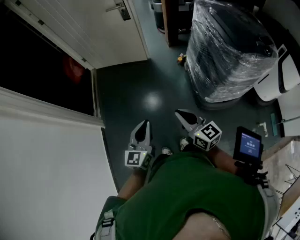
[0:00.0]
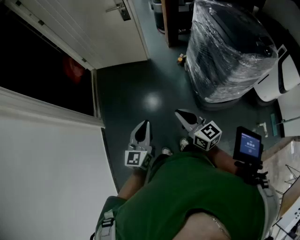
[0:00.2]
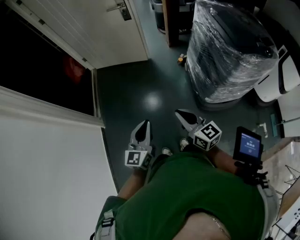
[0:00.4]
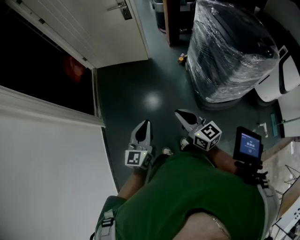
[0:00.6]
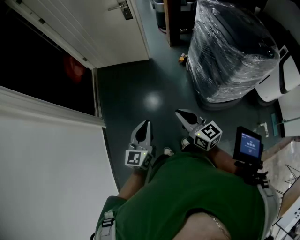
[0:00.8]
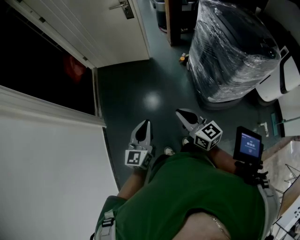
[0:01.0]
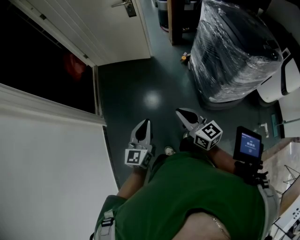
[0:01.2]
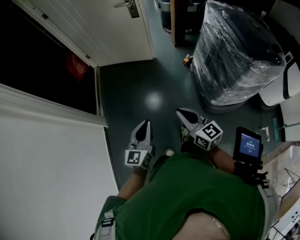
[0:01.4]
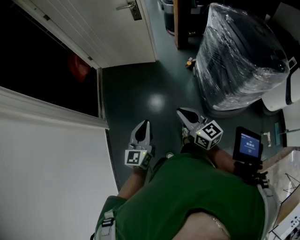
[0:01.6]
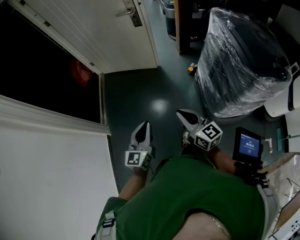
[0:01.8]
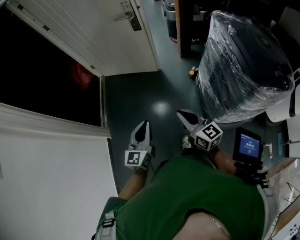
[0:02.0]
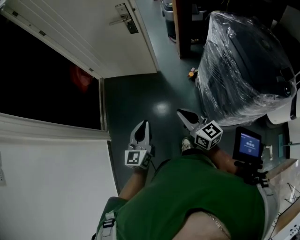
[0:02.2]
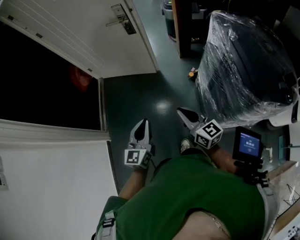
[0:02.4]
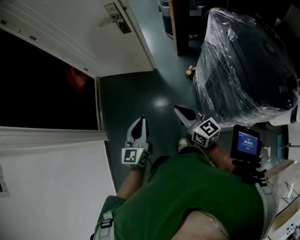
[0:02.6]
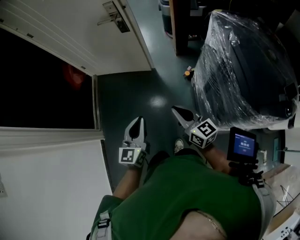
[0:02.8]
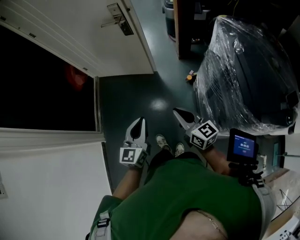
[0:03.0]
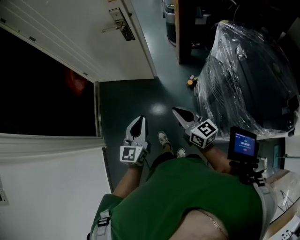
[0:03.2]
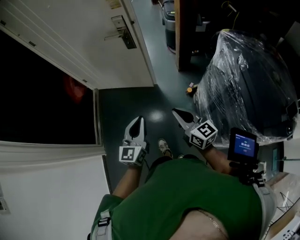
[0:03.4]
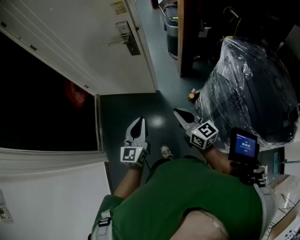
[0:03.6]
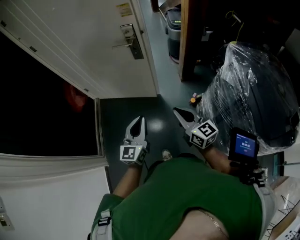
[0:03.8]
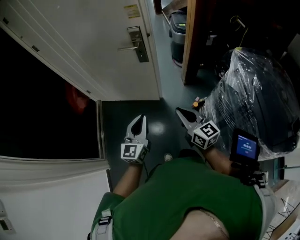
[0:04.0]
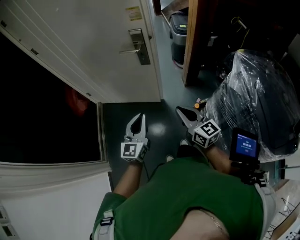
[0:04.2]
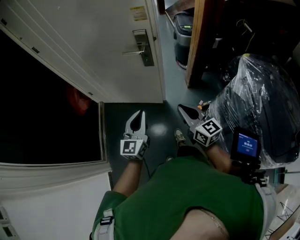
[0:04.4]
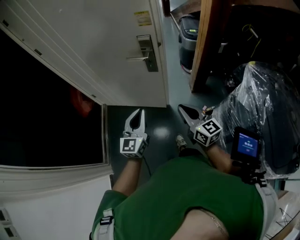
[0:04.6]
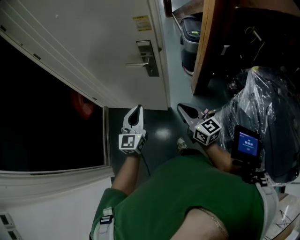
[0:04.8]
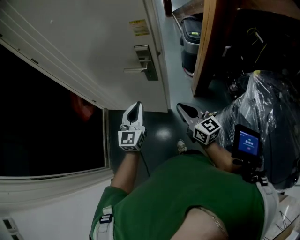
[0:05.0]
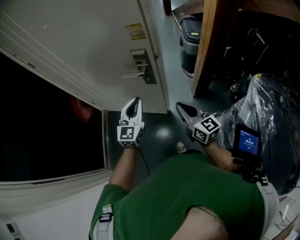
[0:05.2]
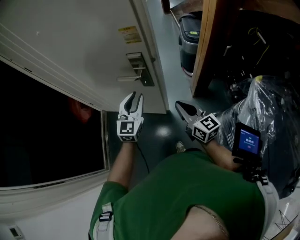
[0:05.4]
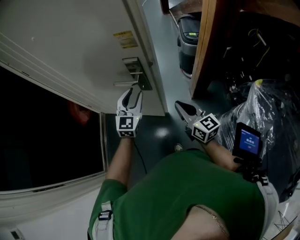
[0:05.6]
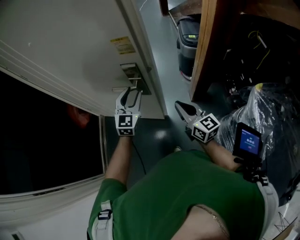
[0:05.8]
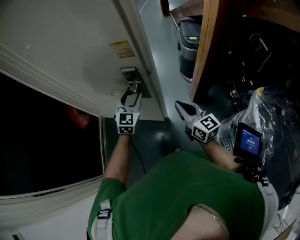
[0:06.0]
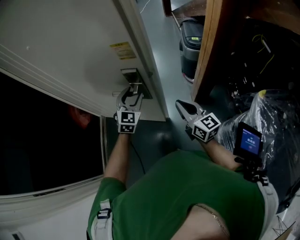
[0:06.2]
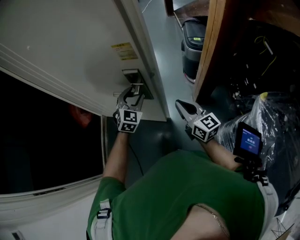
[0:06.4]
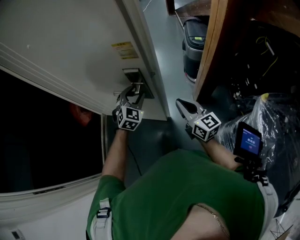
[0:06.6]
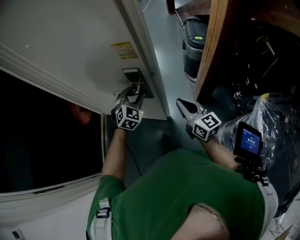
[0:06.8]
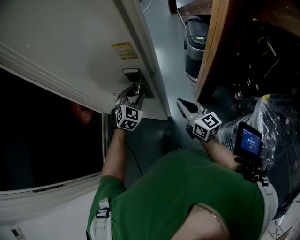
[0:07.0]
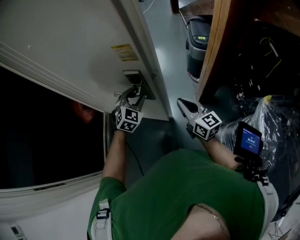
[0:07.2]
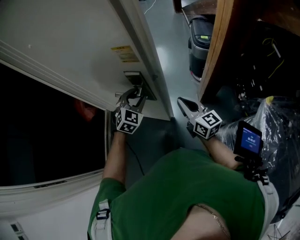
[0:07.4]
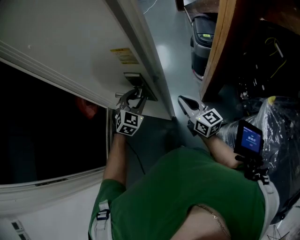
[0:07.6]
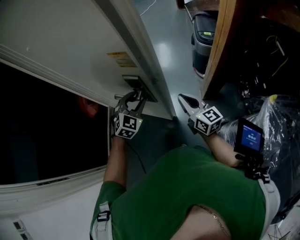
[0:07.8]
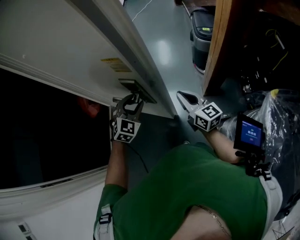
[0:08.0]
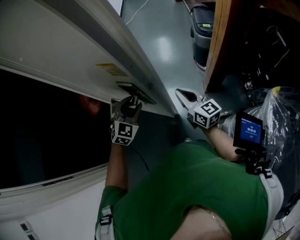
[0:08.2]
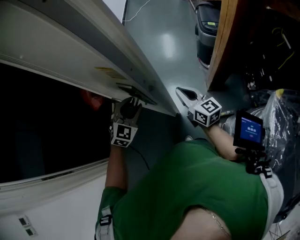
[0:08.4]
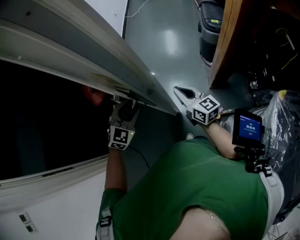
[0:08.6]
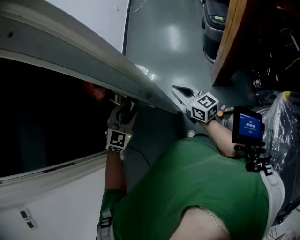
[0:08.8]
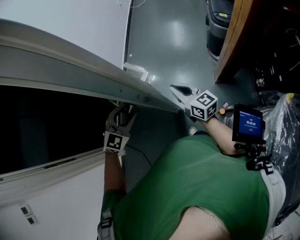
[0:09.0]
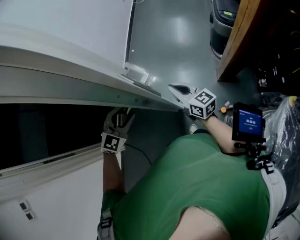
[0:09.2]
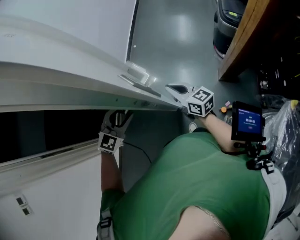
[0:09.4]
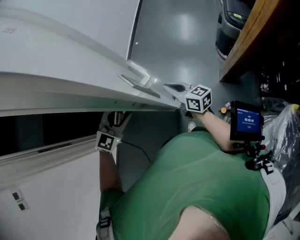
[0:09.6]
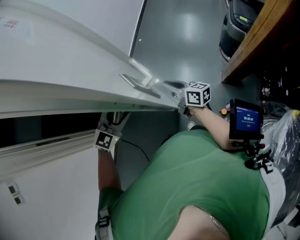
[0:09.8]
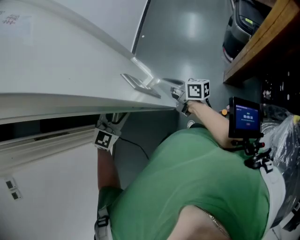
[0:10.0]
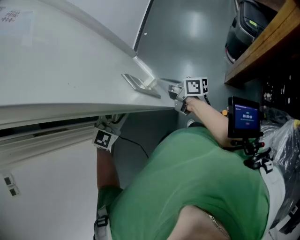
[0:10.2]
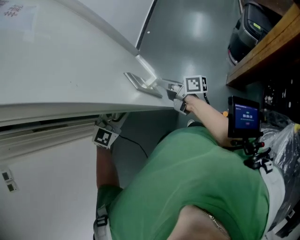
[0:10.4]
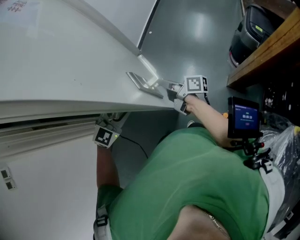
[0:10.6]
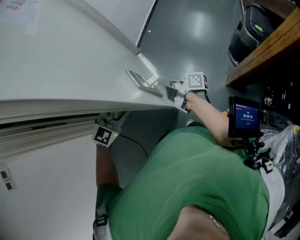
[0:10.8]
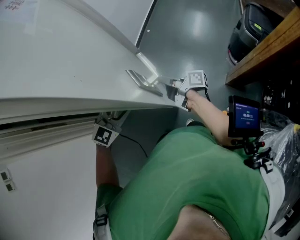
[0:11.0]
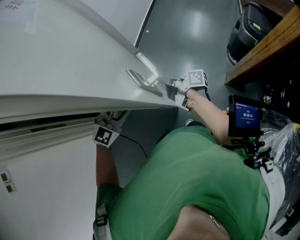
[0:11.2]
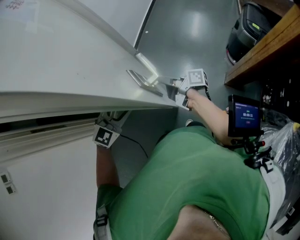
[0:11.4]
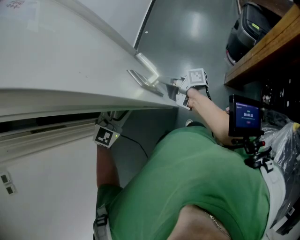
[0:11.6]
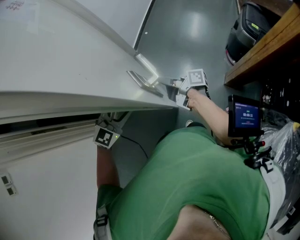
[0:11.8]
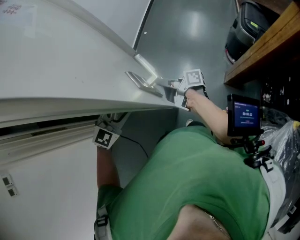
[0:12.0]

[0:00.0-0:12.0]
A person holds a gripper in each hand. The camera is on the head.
0:00.0 to 0:01.6: Both grippers travel together forward, roughly 5 cm.
0:01.6 to 0:03.0: The two grippers go about 30 cm forward and to the right.
0:03.0 to 0:04.4: The grippers both shift forward by some 25 cm.
0:04.4 to 0:06.0: Both grippers travel together forward, approximately 30 cm. The left gripper swivels approximately 30 degrees, and opens.
0:06.0 to 0:07.6: The left gripper swivels about 20 degrees.
0:07.6 to 0:09.0: The right gripper moves to the left, roughly 10 cm. Meanwhile the left gripper goes approximately 15 cm backward and to the left.
0:09.0 to 0:10.4: The left gripper moves to the left, roughly 10 cm. Meanwhile the right gripper is displaced to the left by some 15 cm, rolls clockwise, seen from behind, by some 50 degrees, and opens up.
0:10.4 to 0:12.0: The grippers stay close to where they were, moving slightly.

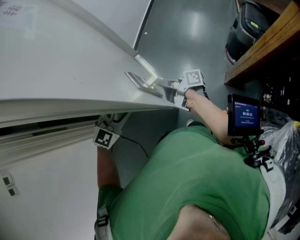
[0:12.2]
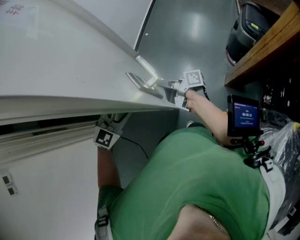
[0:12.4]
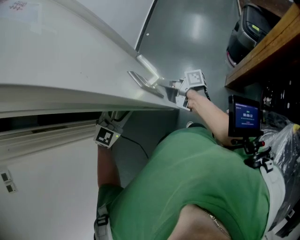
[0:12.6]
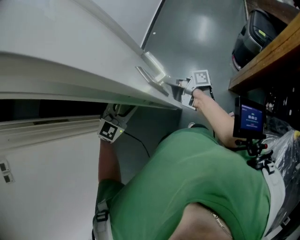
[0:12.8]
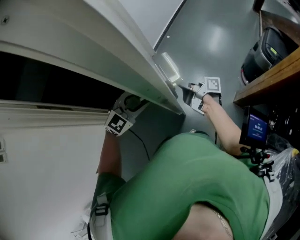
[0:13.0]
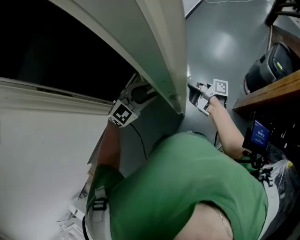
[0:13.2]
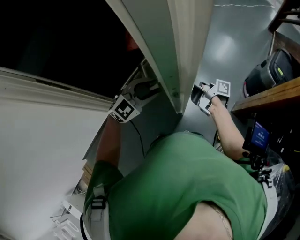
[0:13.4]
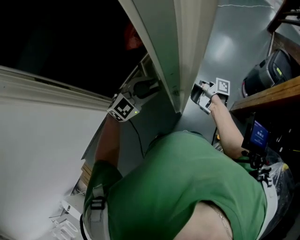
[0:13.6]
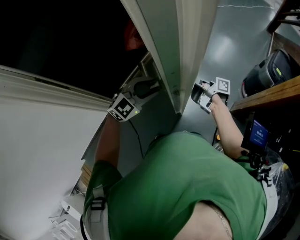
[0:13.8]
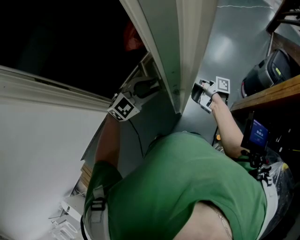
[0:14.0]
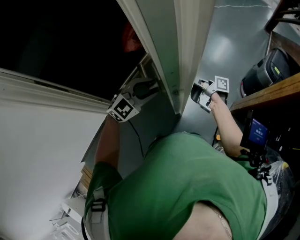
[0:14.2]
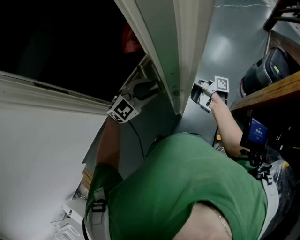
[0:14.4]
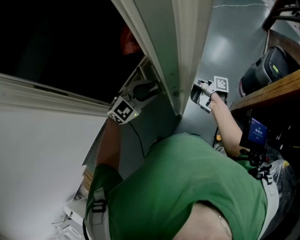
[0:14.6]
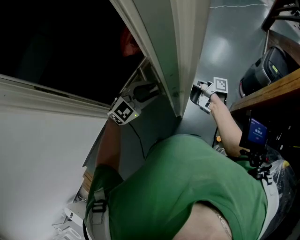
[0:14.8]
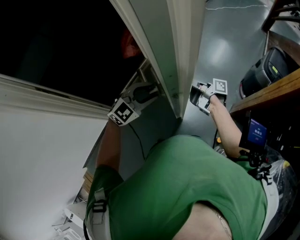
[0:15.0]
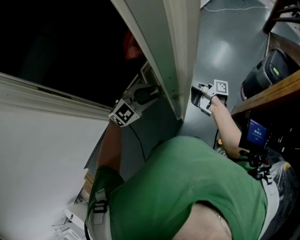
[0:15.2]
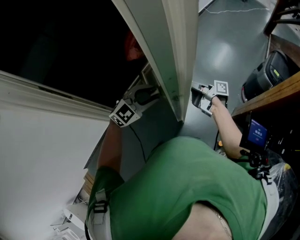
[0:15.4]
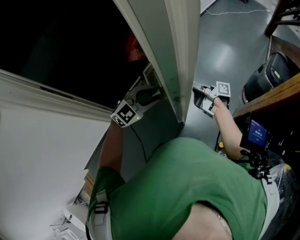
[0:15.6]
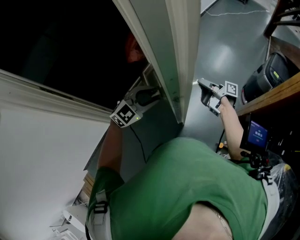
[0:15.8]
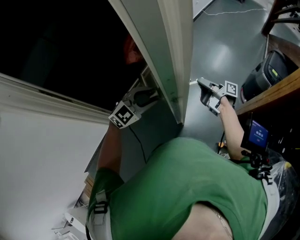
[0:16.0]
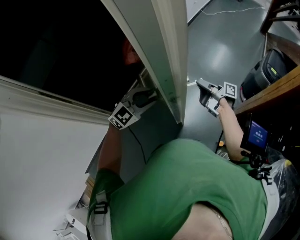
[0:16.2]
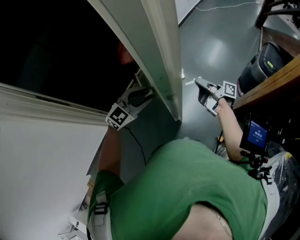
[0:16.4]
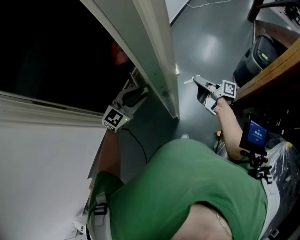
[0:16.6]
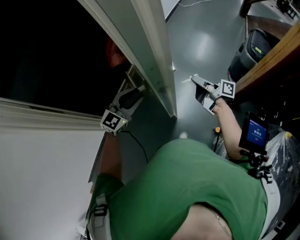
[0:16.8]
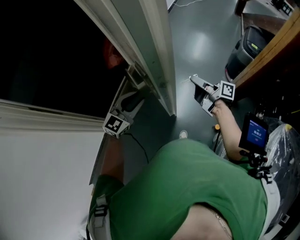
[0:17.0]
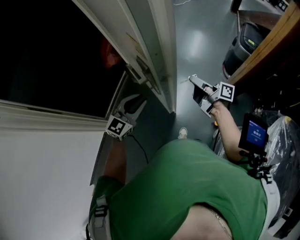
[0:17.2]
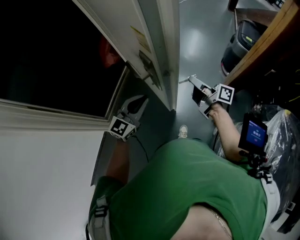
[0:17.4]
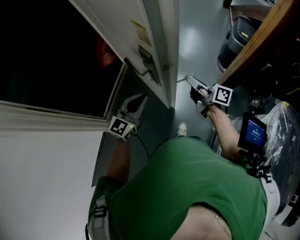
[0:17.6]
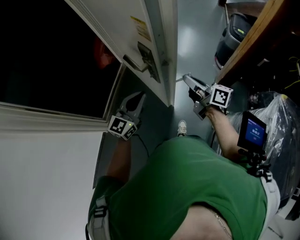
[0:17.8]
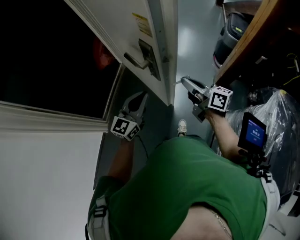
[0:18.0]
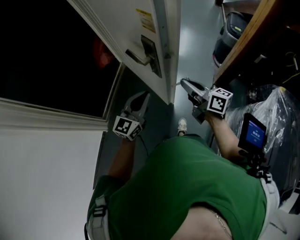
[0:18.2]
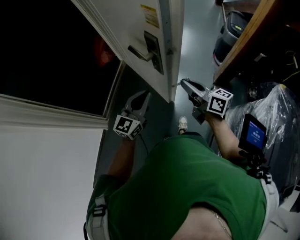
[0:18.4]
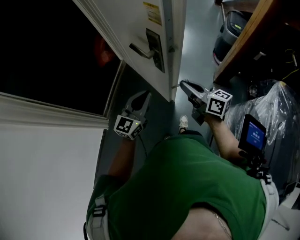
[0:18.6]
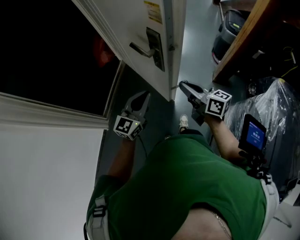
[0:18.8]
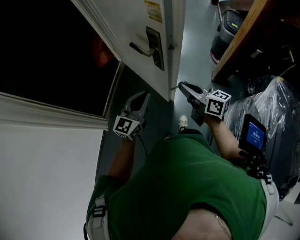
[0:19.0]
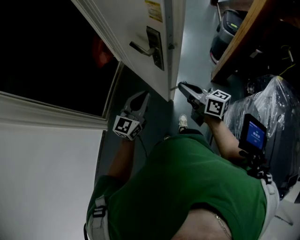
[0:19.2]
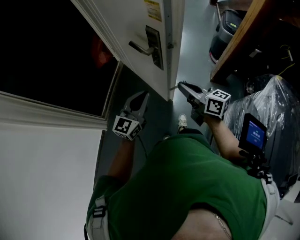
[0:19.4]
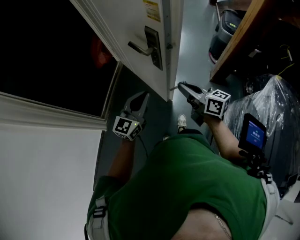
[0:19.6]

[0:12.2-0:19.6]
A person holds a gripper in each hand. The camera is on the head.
0:12.2 to 0:13.6: There are only small adjustments of the grippers.
0:13.6 to 0:15.2: Both grippers stay about where they are.
0:15.2 to 0:16.6: The right gripper heads to the right, covering roughly 10 cm, while the left gripper ends up some 5 cm from where it was.
0:16.6 to 0:18.2: The left gripper shifts approximately 20 cm backward, rotates about 20 degrees, and closes, while the right gripper is displaced backward and upward by about 25 cm, and twists some 40 degrees counterclockwise, seen from behind.
0:18.2 to 0:19.6: Both grippers travel together backward, approximately 5 cm.

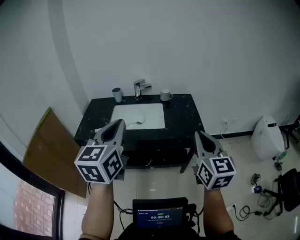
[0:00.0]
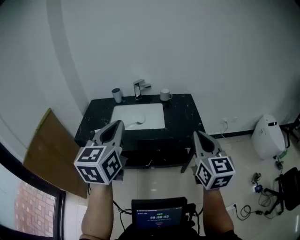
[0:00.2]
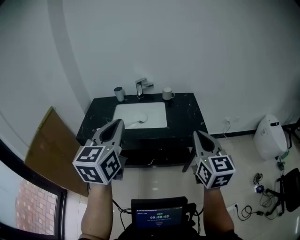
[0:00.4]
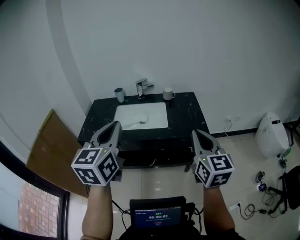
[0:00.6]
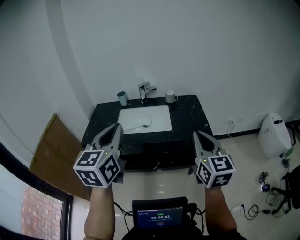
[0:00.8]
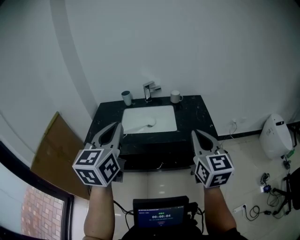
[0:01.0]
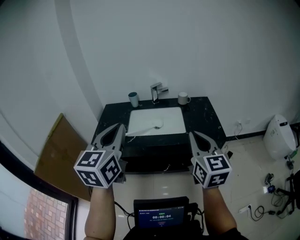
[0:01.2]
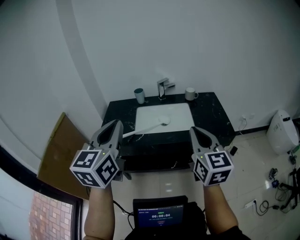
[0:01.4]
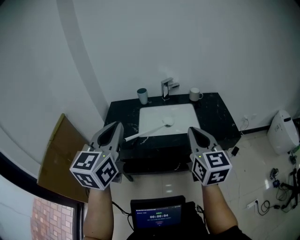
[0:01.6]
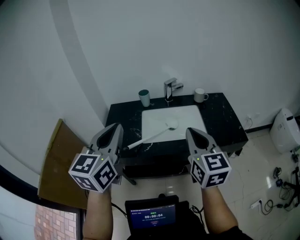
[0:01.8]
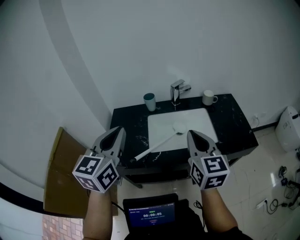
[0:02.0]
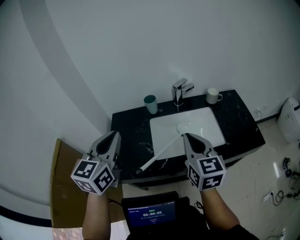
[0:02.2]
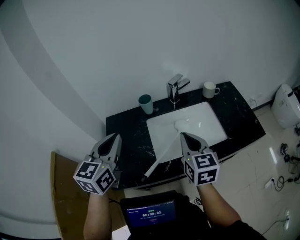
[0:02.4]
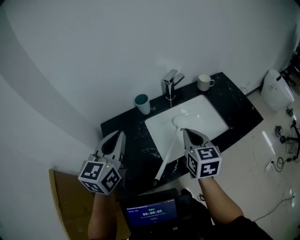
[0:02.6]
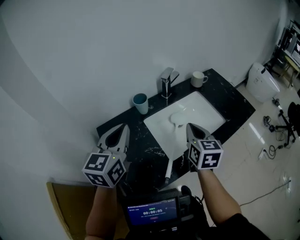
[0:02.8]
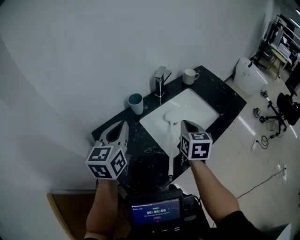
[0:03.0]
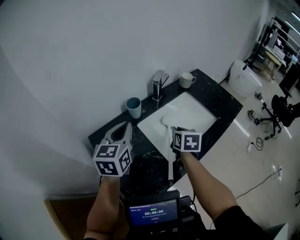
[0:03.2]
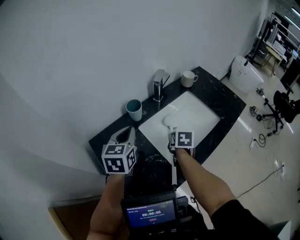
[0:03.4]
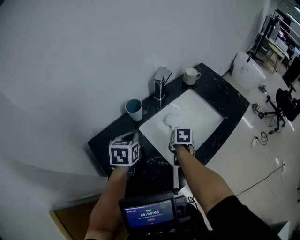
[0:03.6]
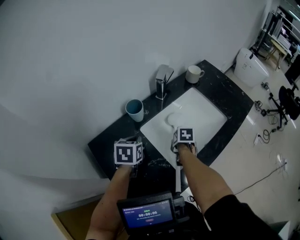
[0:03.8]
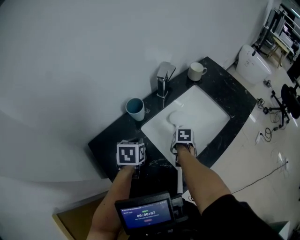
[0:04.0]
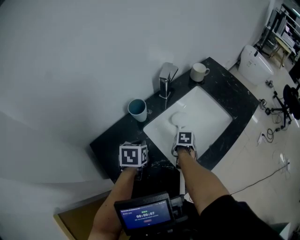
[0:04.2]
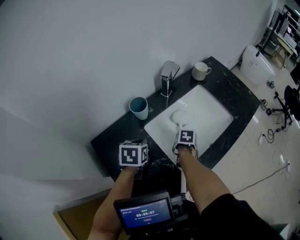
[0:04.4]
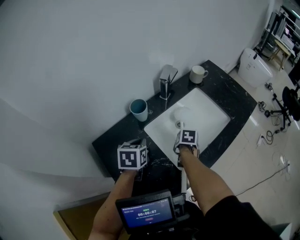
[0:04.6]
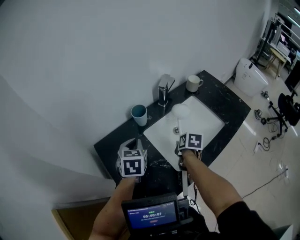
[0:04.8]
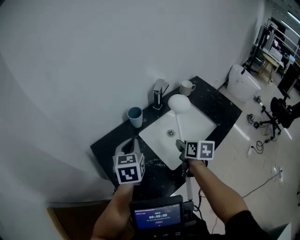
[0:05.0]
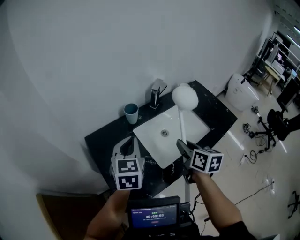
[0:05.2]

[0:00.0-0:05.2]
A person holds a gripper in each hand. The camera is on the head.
0:00.0 to 0:01.8: The two grippers go about 35 cm to the left and forward.
0:01.8 to 0:03.4: The pair of grippers is taken about 40 cm. The right gripper tilts its fingers about 50 degrees downward, and opens. Meanwhile the left gripper rotates roughly 40 degrees.
0:03.4 to 0:05.2: The right gripper heads upward, covering about 15 cm, points its fingers roughly 30 degrees further upward, and closes. The left gripper goes downward and returns, approximately 15 cm each way.
